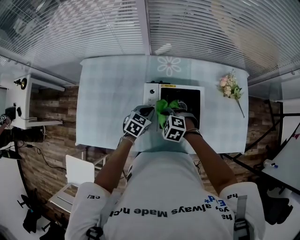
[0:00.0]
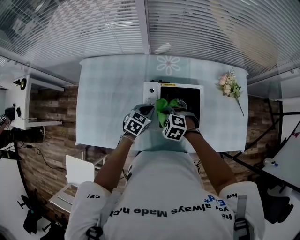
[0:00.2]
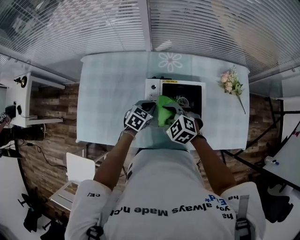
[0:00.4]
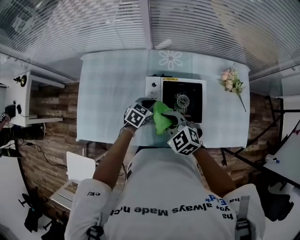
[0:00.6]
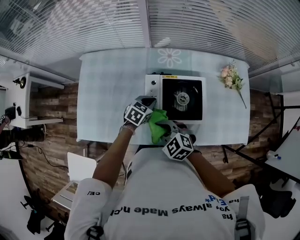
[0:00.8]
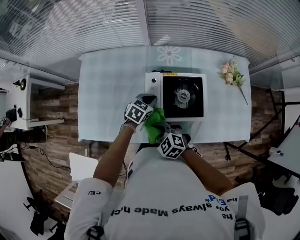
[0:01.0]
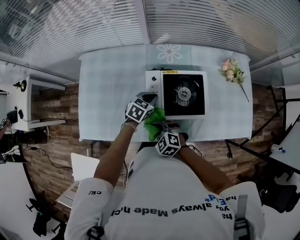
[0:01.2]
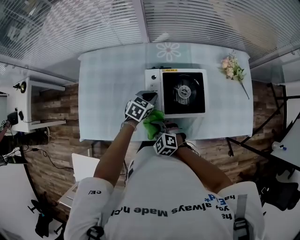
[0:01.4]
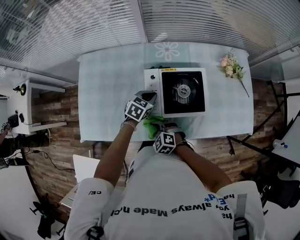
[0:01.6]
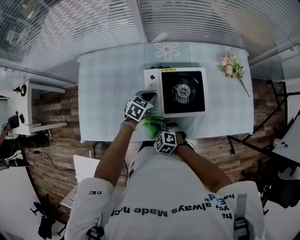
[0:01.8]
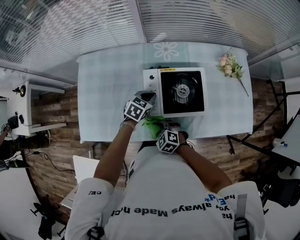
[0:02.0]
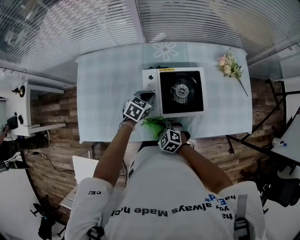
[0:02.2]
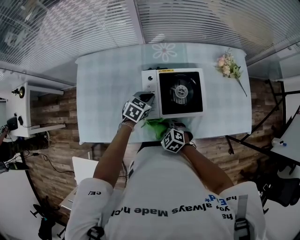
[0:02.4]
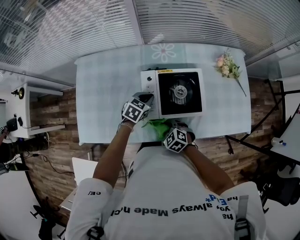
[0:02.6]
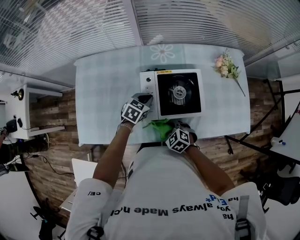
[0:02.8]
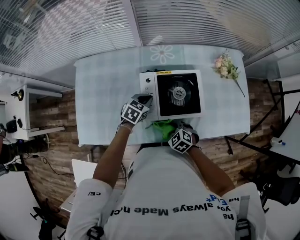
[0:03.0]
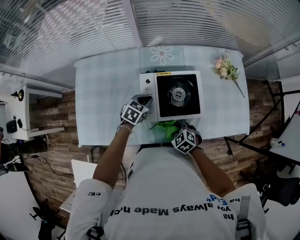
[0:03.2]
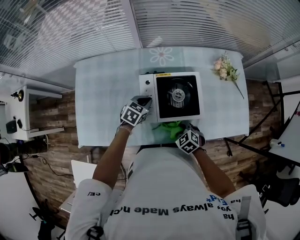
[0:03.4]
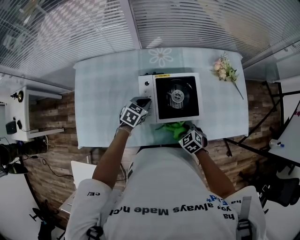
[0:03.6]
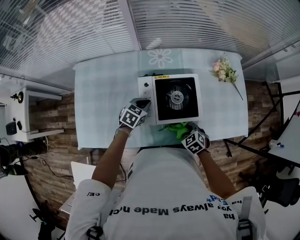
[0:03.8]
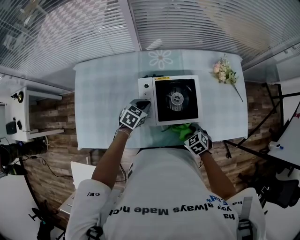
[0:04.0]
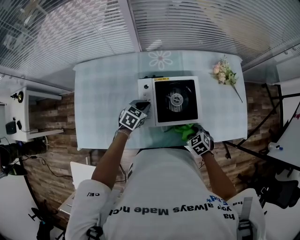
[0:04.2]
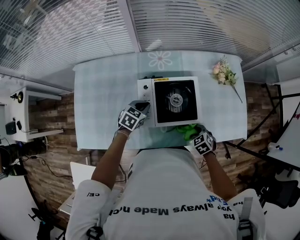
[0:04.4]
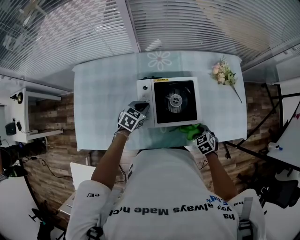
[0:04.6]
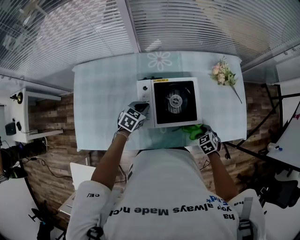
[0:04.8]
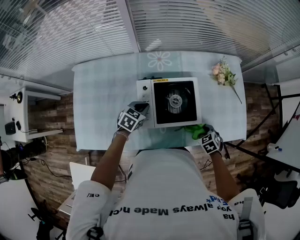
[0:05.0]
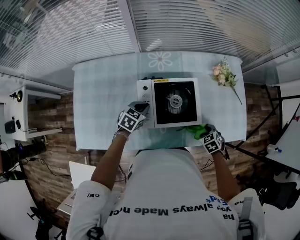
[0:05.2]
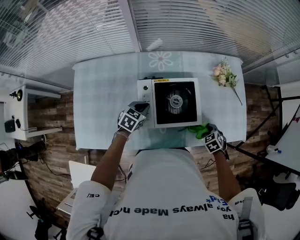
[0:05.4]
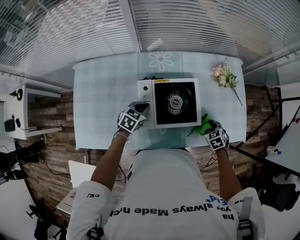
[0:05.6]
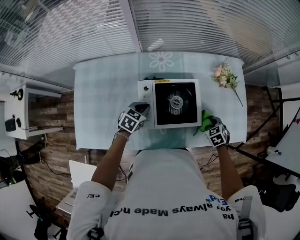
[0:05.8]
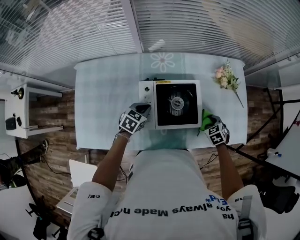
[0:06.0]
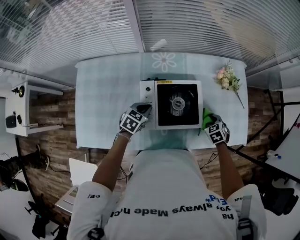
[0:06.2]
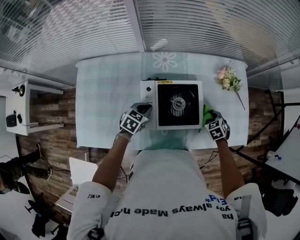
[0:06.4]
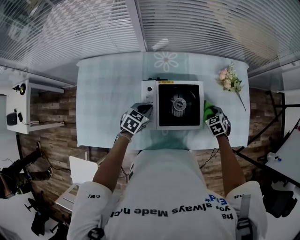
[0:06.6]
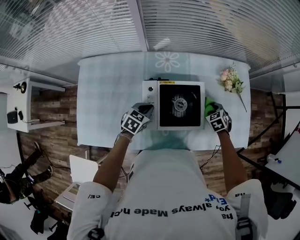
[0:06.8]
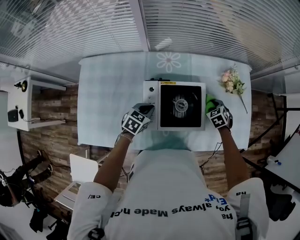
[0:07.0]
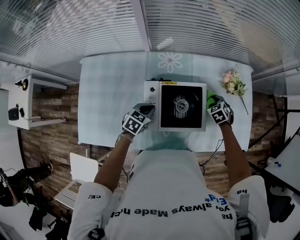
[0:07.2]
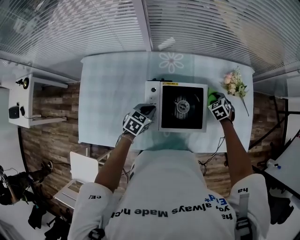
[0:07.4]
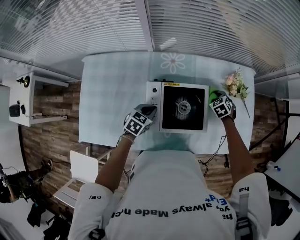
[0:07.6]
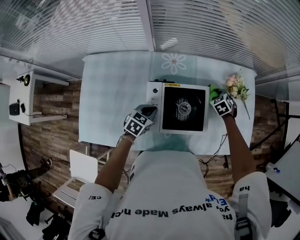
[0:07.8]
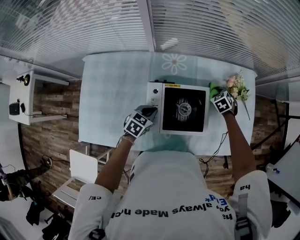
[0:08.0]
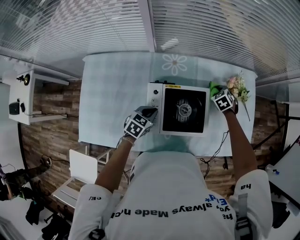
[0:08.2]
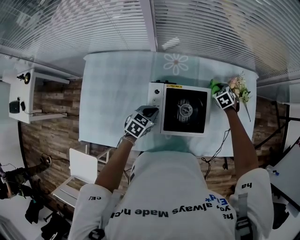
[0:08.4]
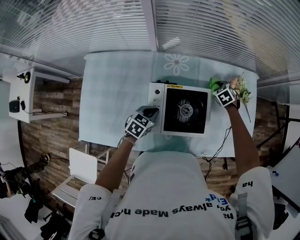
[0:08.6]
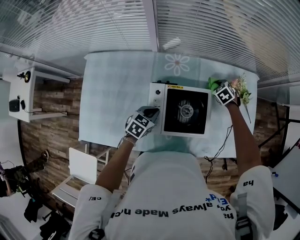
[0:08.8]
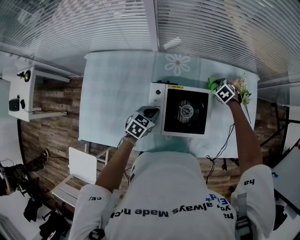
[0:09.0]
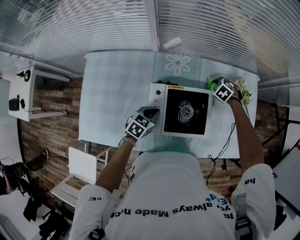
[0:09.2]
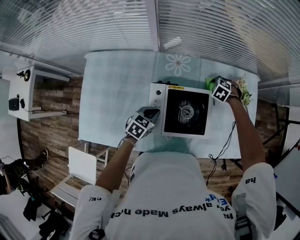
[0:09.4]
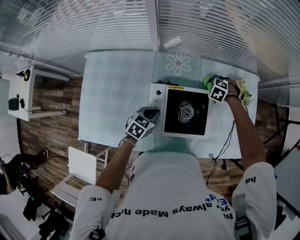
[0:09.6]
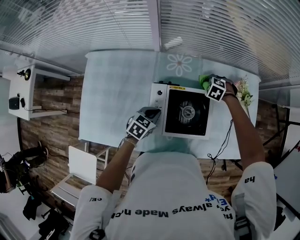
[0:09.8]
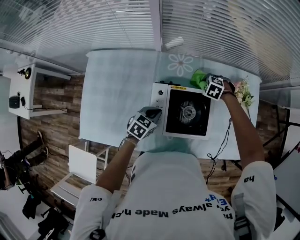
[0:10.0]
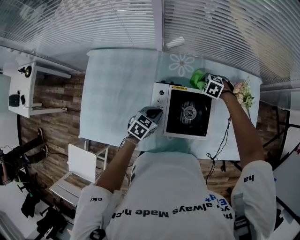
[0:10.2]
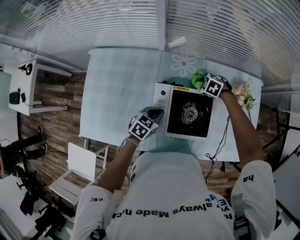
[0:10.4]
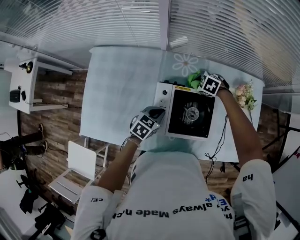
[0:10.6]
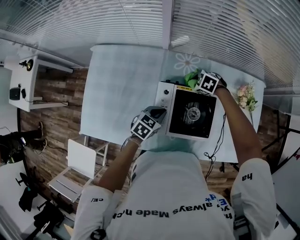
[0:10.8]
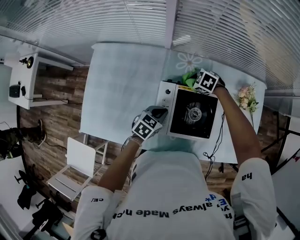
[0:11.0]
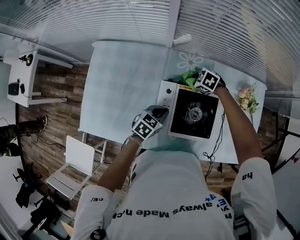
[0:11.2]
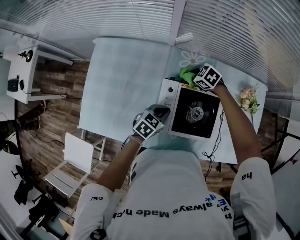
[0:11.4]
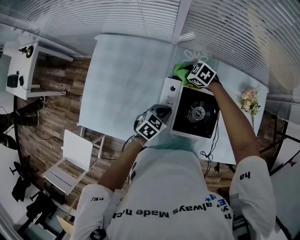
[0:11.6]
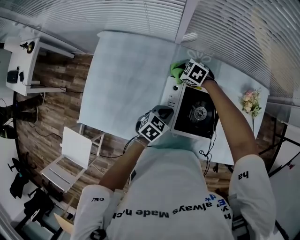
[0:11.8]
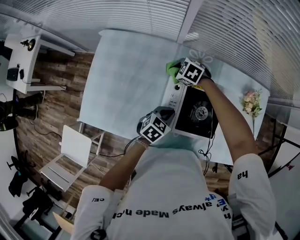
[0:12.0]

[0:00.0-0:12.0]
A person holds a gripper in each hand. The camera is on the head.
0.0 to 1.6 s: The right gripper heads backward and to the left, covering approximately 15 cm, and travels upward and back again, roughly 10 cm each way.
1.6 to 3.0 s: The right gripper travels to the right by roughly 10 cm.
3.0 to 4.4 s: The right gripper shifts roughly 15 cm to the right.
4.4 to 6.0 s: The right gripper travels forward and to the right by approximately 10 cm.
6.0 to 7.6 s: The right gripper goes some 15 cm forward.
7.6 to 9.0 s: The right gripper moves forward, approximately 5 cm.
9.0 to 10.4 s: The right gripper changes place by about 15 cm, and changes its angle by about 30 degrees.
10.4 to 12.0 s: The right gripper shifts by approximately 20 cm.

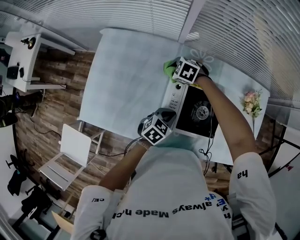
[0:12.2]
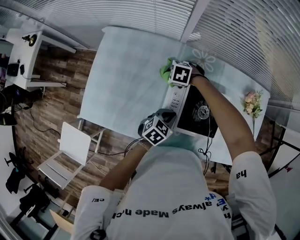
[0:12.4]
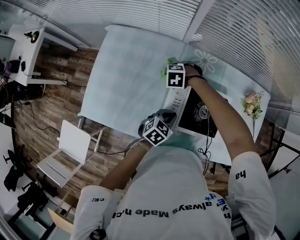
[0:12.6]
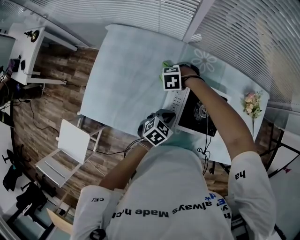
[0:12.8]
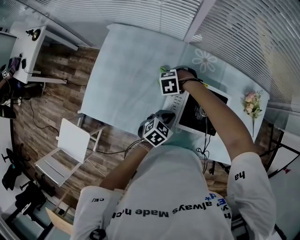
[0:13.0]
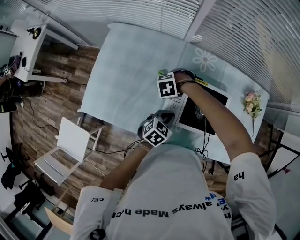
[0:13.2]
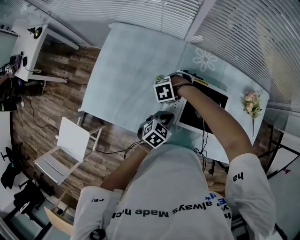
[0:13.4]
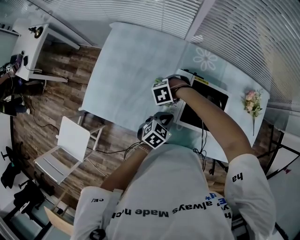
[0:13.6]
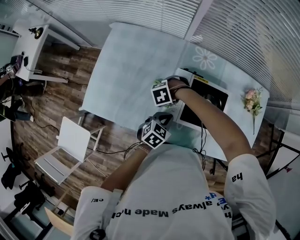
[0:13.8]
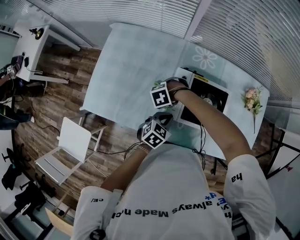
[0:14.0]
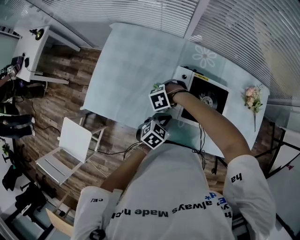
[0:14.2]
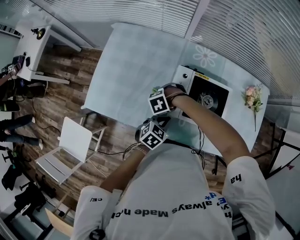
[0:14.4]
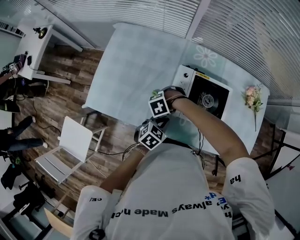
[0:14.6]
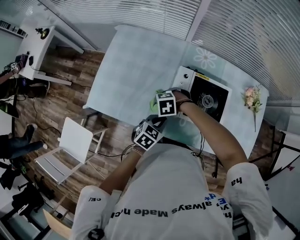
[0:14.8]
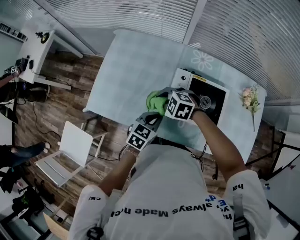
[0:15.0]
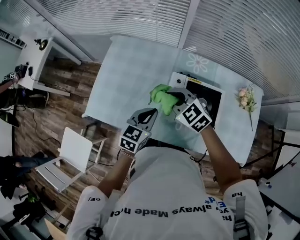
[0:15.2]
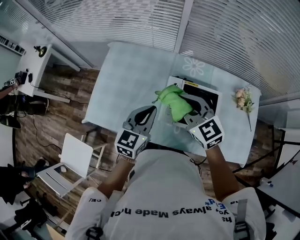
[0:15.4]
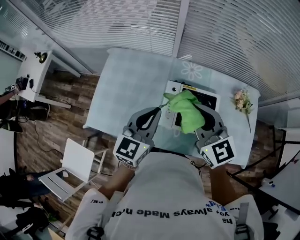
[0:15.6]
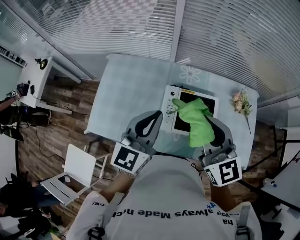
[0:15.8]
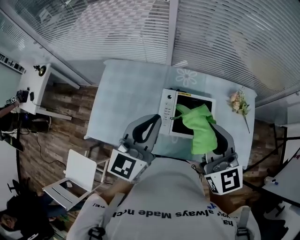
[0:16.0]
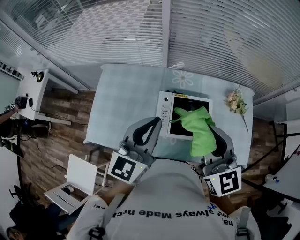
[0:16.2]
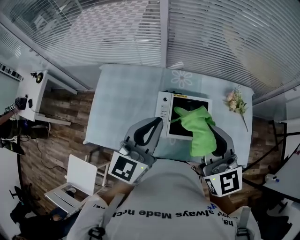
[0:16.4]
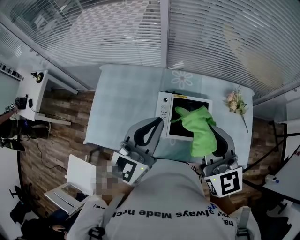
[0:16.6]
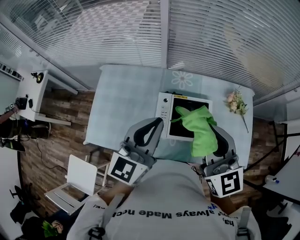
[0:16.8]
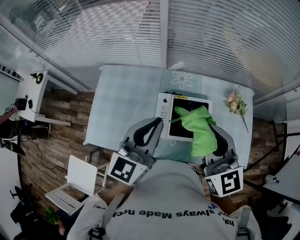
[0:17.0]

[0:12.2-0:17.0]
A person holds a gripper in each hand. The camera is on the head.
12.2 to 13.8 s: The right gripper changes place by approximately 20 cm, and turns by approximately 40 degrees; the left gripper shifts by roughly 5 cm.
13.8 to 15.4 s: Both grippers move upward, about 25 cm. The left gripper changes its angle by roughly 30 degrees. The right gripper tilts its fingers roughly 50 degrees upward.
15.4 to 17.0 s: Both grippers travel together upward and to the right, roughly 20 cm. The right gripper rotates approximately 30 degrees.

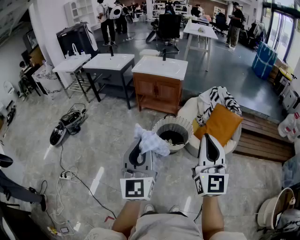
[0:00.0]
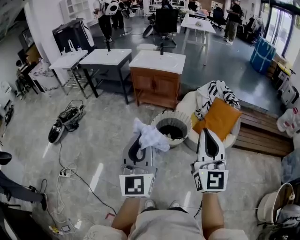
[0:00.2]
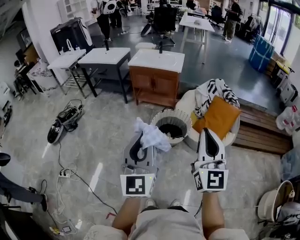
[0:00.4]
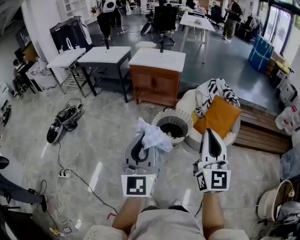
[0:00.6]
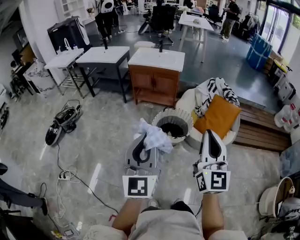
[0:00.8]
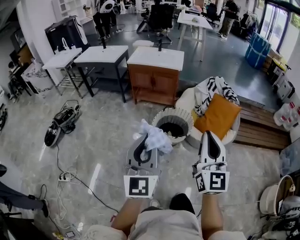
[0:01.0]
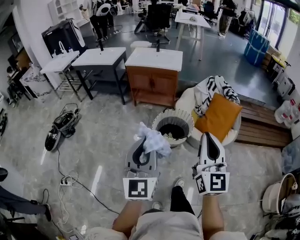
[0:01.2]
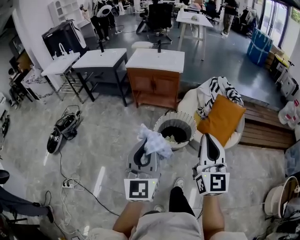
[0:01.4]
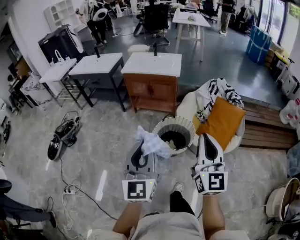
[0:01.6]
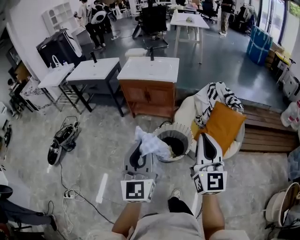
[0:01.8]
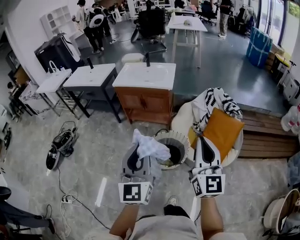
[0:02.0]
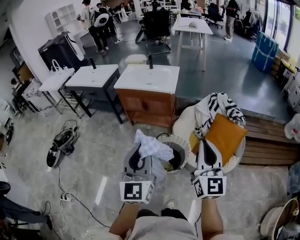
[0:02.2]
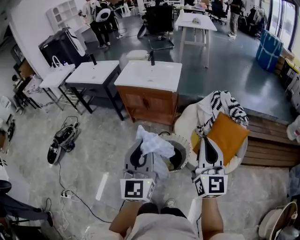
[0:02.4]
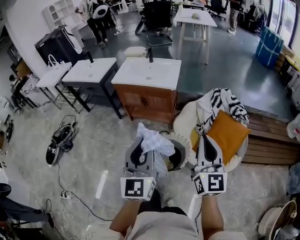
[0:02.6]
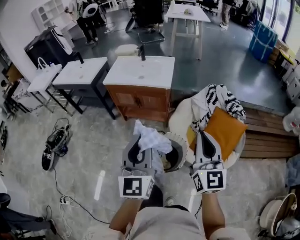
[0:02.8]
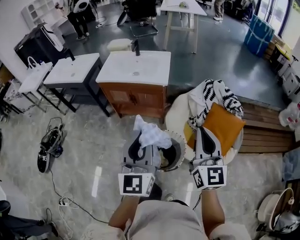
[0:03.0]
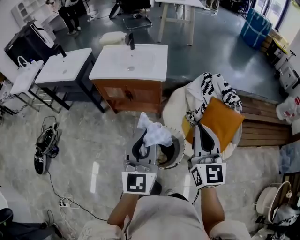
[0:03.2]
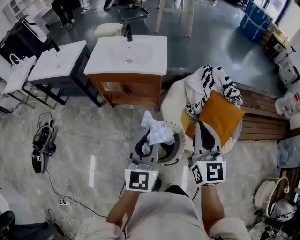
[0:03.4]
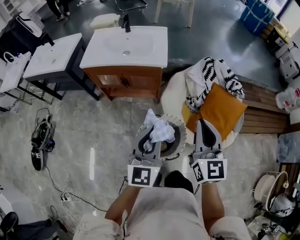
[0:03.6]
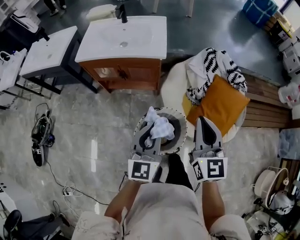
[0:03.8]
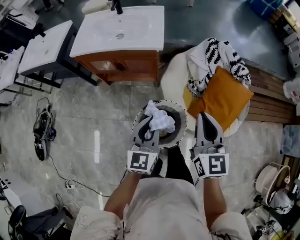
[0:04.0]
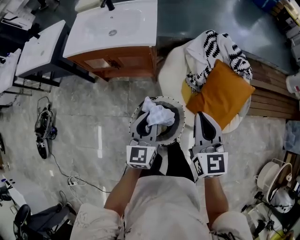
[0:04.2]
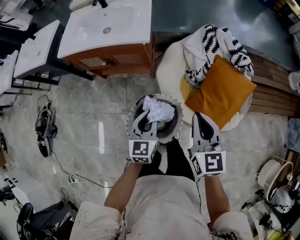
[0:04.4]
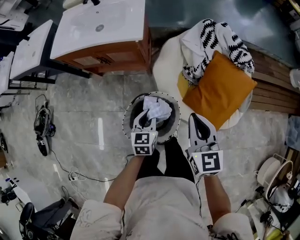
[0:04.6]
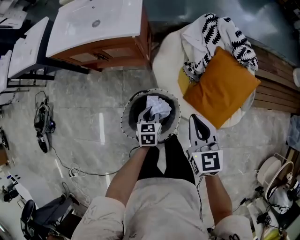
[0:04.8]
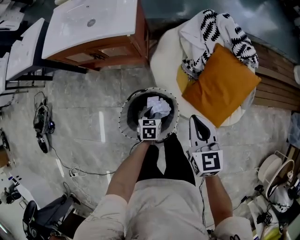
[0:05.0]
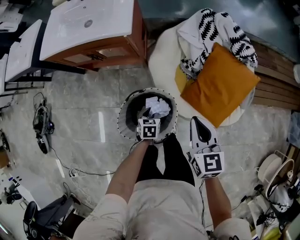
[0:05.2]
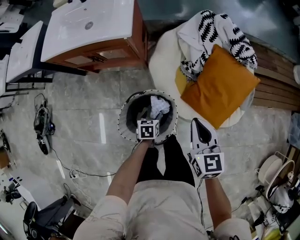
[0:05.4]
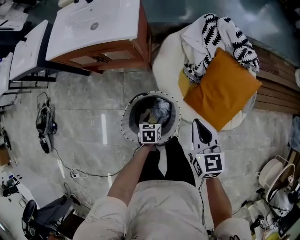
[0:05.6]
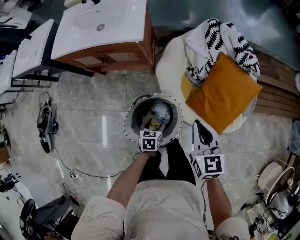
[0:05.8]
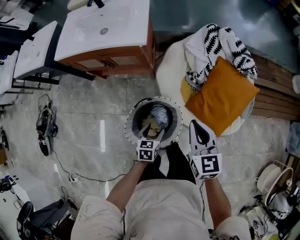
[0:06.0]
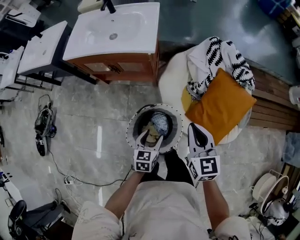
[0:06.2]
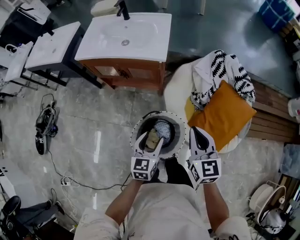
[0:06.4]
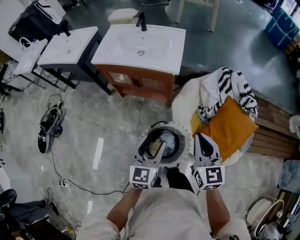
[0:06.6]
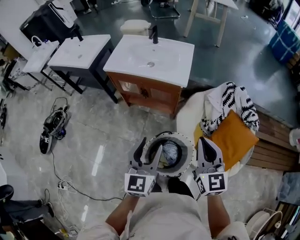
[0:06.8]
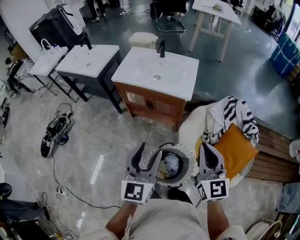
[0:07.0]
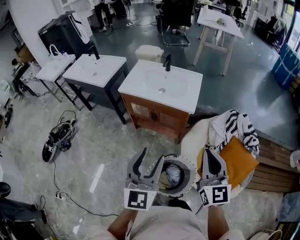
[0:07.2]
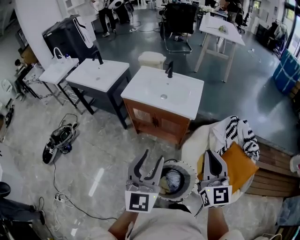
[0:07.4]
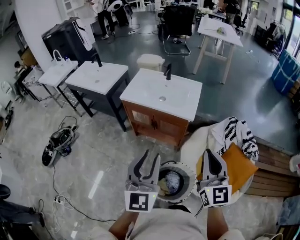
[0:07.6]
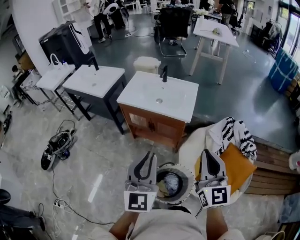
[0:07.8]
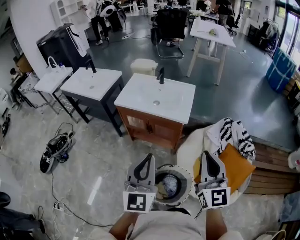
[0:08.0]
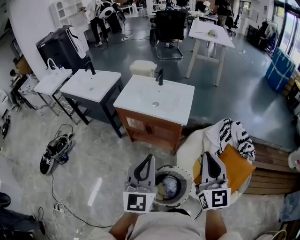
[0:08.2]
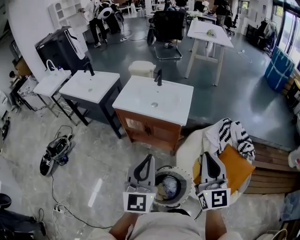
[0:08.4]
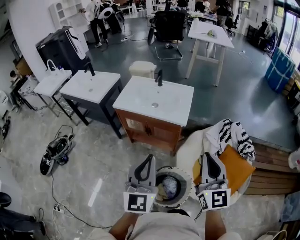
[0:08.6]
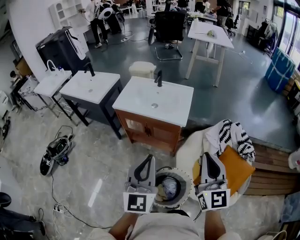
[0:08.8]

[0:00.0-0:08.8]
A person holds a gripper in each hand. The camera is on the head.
0.0 to 1.4 s: The left gripper is displaced forward by about 10 cm; the right gripper travels forward and to the left by some 10 cm.
1.4 to 3.0 s: The pair of grippers is taken forward, roughly 40 cm.
3.0 to 4.4 s: The grippers both shift downward and forward by roughly 30 cm. The right gripper swivels roughly 20 degrees, while the left gripper changes its angle by about 30 degrees.
4.4 to 5.8 s: The right gripper goes some 10 cm downward; the left gripper moves downward, some 25 cm, points its fingers about 30 degrees further downward, and opens.
5.8 to 7.4 s: The right gripper shifts some 35 cm upward and to the left, and rotates approximately 30 degrees. Meanwhile the left gripper moves upward, approximately 50 cm, and tips its fingers upward by some 60 degrees.
7.4 to 8.8 s: The left gripper closes up.
